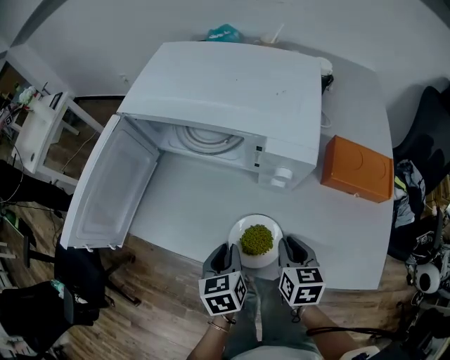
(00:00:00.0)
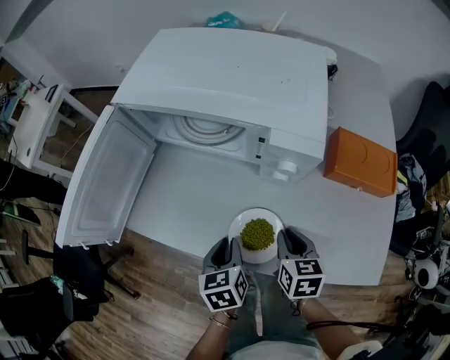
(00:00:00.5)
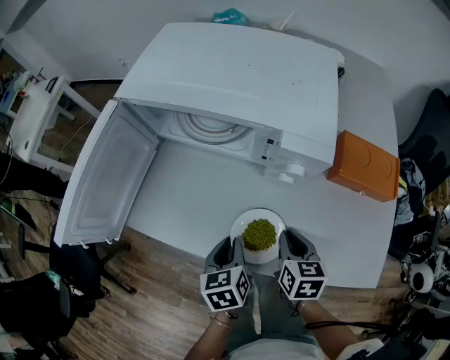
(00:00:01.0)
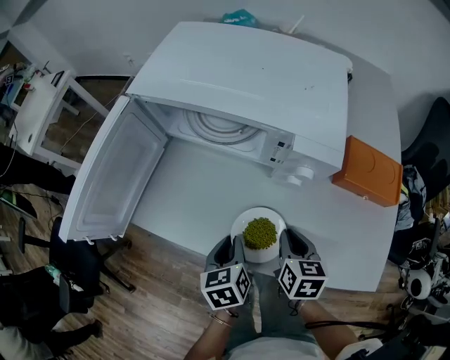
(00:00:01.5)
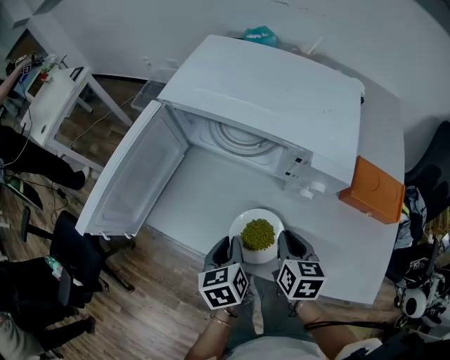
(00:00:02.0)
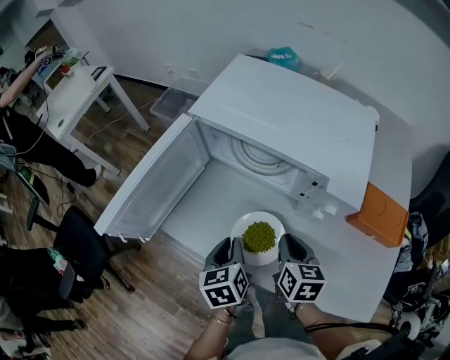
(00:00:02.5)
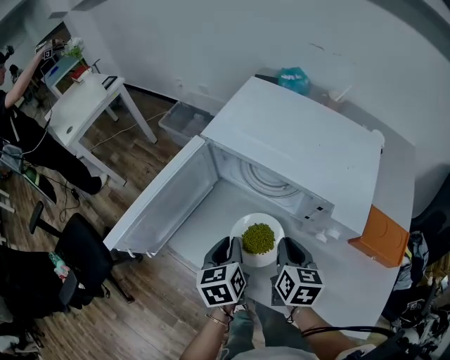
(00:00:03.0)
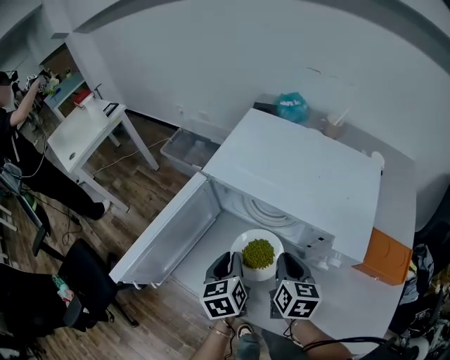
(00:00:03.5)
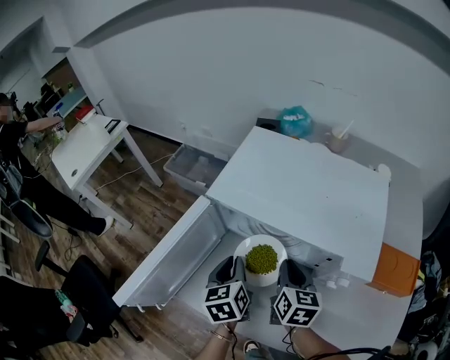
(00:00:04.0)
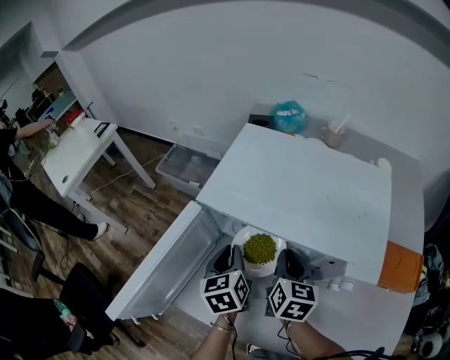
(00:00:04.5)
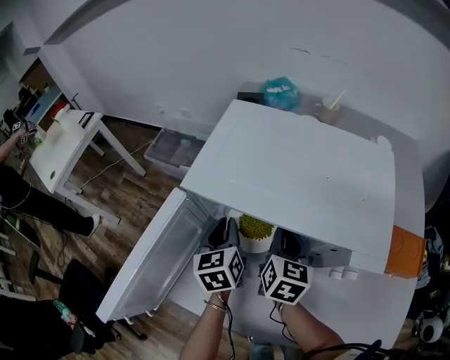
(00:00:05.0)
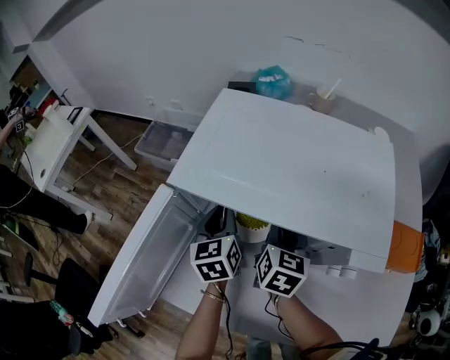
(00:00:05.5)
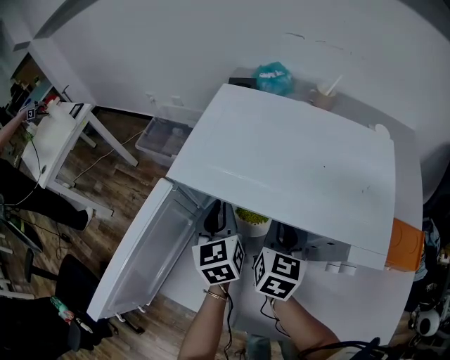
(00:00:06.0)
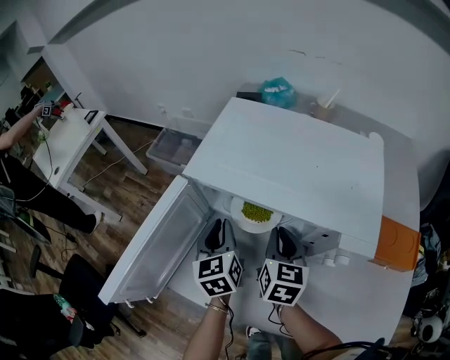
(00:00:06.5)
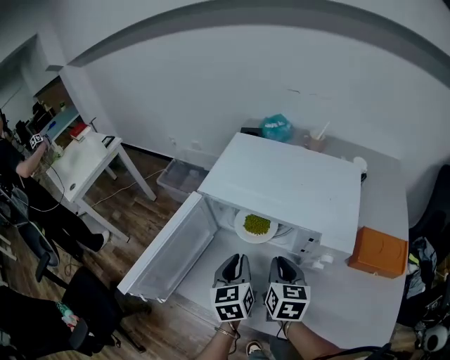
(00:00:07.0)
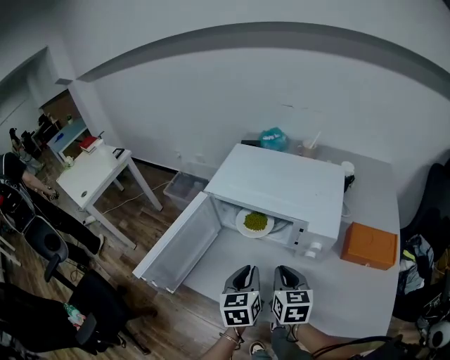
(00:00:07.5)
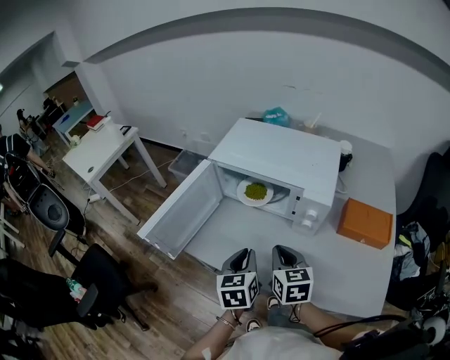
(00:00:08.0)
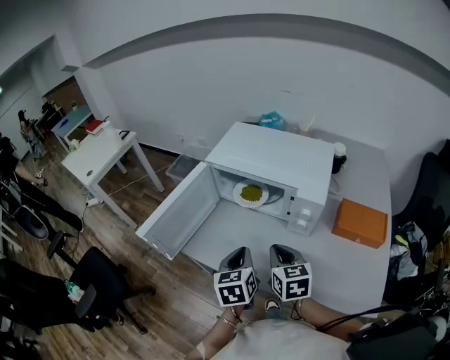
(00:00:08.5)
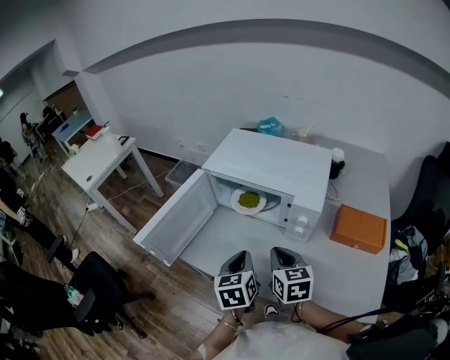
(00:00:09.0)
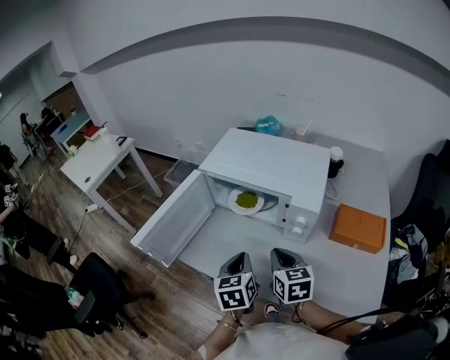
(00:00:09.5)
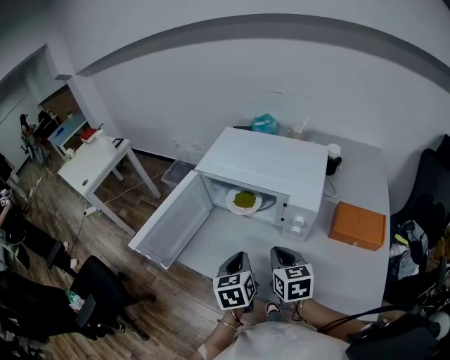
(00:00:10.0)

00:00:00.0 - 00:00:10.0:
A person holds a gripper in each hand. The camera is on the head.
00:00:00.0 - 00:00:02.0: Both grippers move to the left, approximately 5 cm.
00:00:02.0 - 00:00:04.0: Both grippers travel together forward, approximately 20 cm.
00:00:04.0 - 00:00:06.0: The right gripper travels forward by roughly 5 cm, while the left gripper travels forward by about 10 cm.
00:00:06.0 - 00:00:08.0: The grippers both shift backward by some 25 cm. The right gripper swivels approximately 30 degrees.
00:00:08.0 - 00:00:10.0: There are only small adjustments of the grippers.

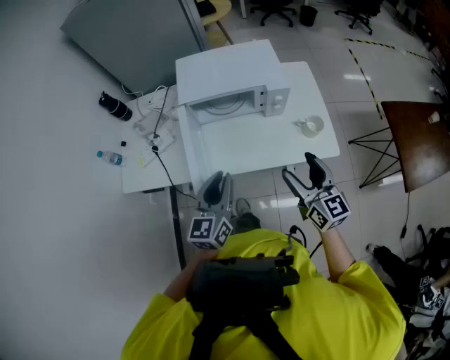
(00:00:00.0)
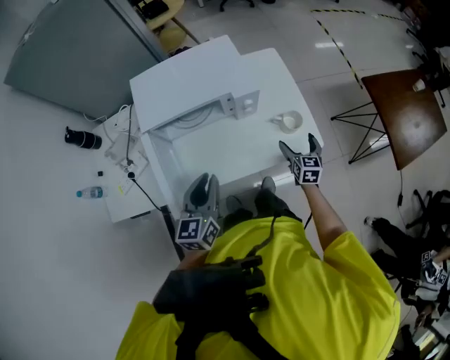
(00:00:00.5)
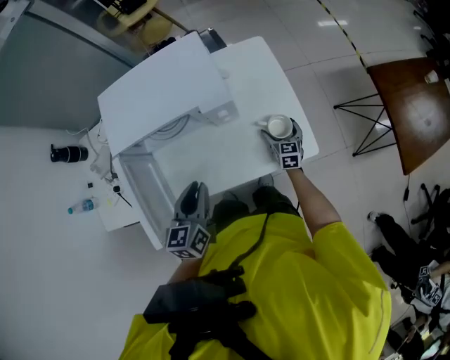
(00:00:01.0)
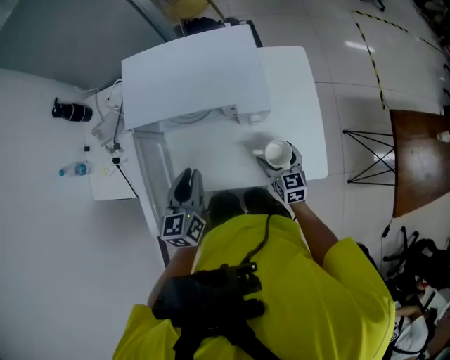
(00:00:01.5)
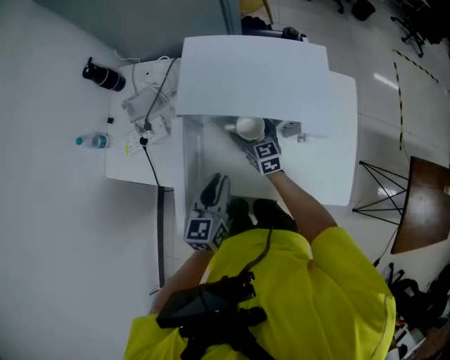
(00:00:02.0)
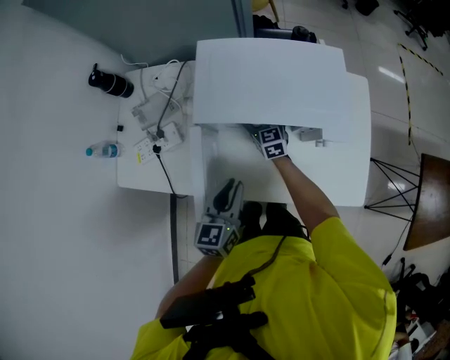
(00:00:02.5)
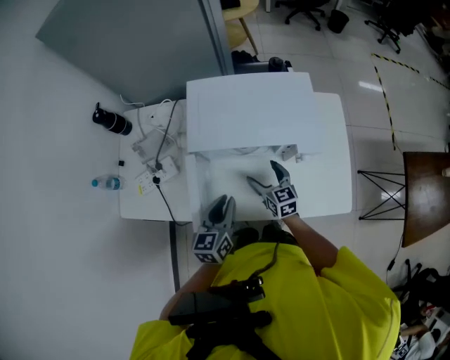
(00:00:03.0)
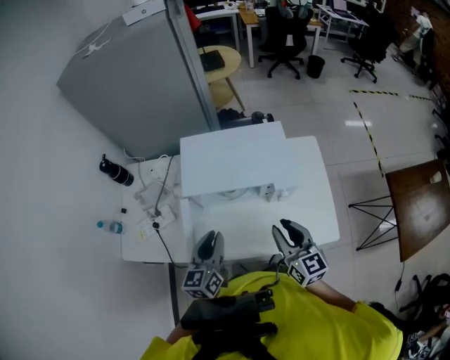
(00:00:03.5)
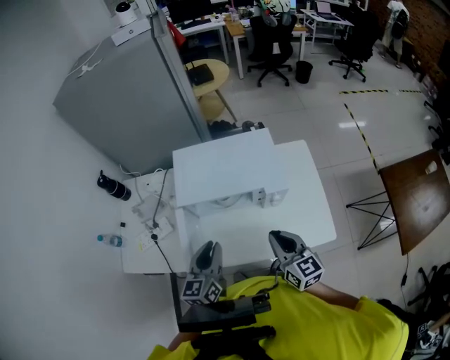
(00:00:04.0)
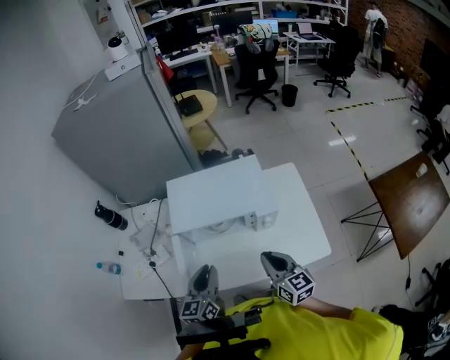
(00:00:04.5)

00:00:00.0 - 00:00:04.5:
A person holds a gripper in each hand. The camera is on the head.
00:00:00.0 - 00:00:02.0: The right gripper shifts by some 50 cm, and changes its angle by approximately 30 degrees, while the left gripper changes place by about 20 cm, and swivels some 20 degrees.
00:00:02.0 - 00:00:04.5: The left gripper heads upward, covering approximately 10 cm, while the right gripper heads upward, backward and to the right, covering about 35 cm, changes its angle by approximately 20 degrees, and closes.

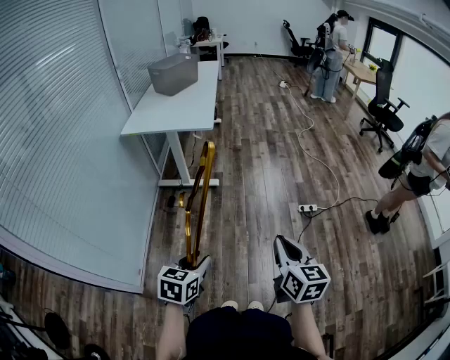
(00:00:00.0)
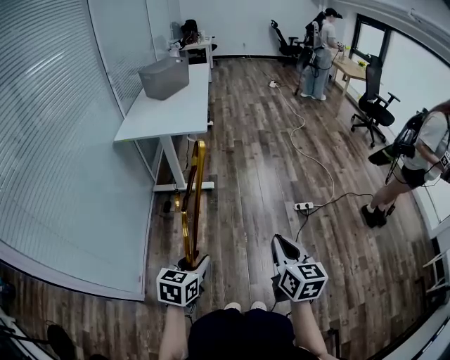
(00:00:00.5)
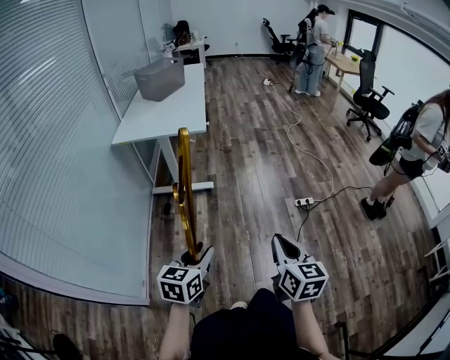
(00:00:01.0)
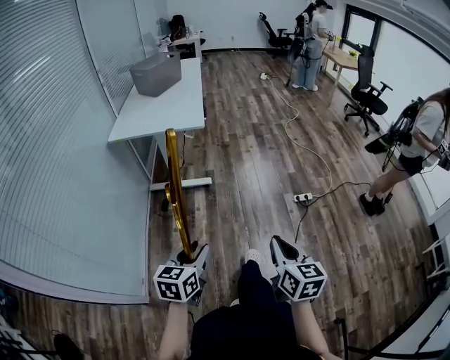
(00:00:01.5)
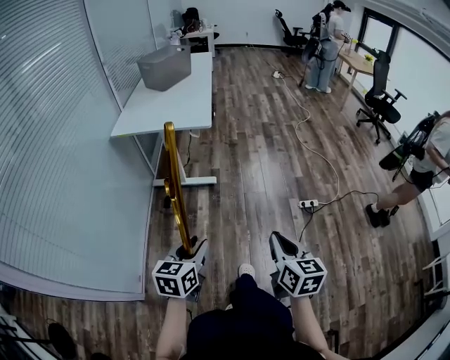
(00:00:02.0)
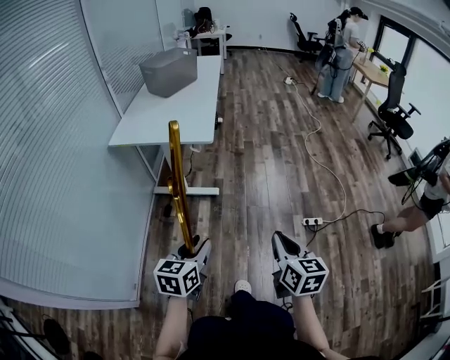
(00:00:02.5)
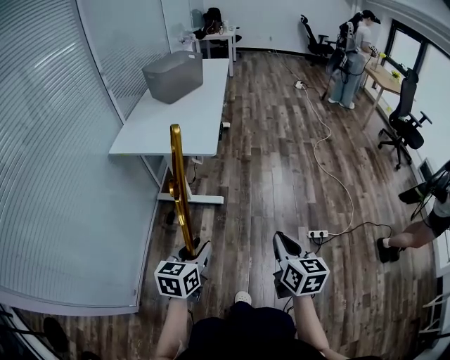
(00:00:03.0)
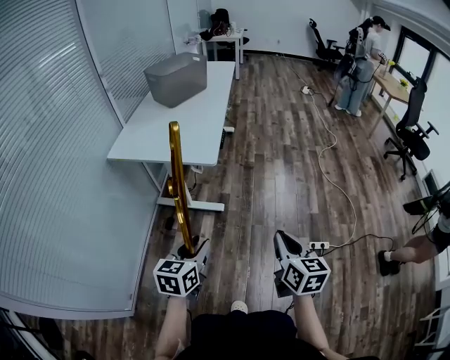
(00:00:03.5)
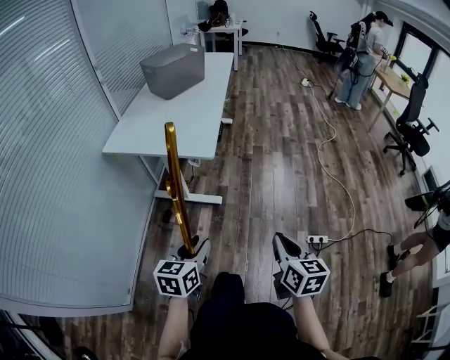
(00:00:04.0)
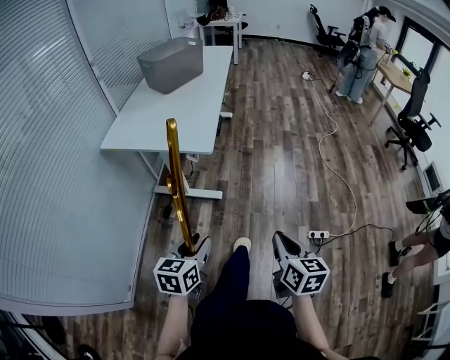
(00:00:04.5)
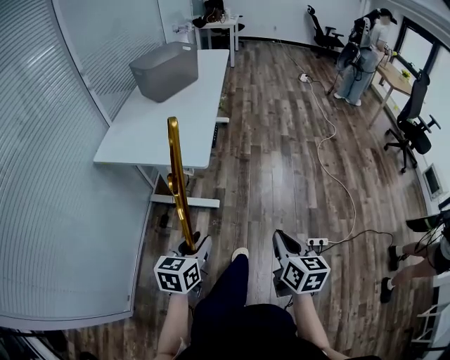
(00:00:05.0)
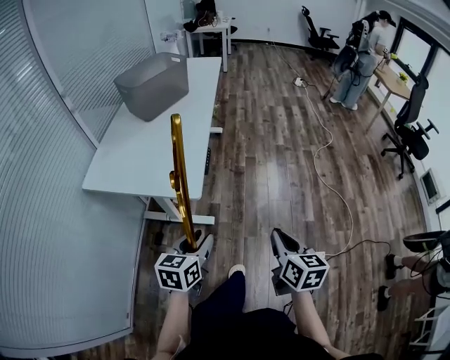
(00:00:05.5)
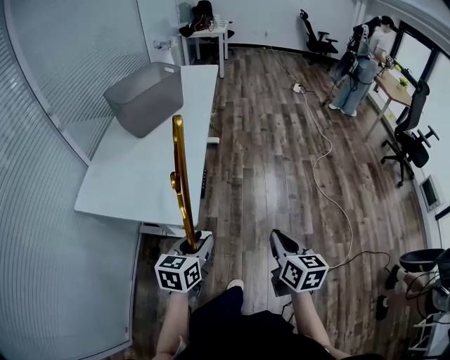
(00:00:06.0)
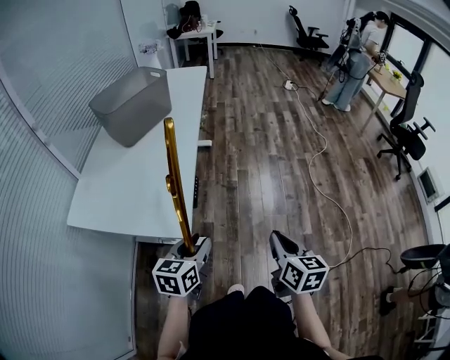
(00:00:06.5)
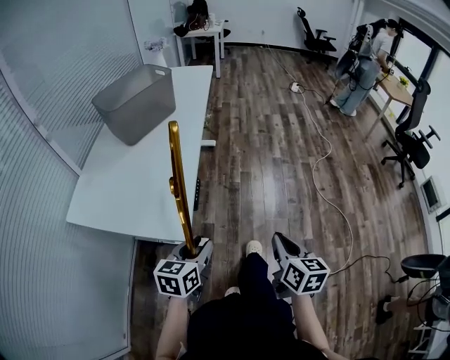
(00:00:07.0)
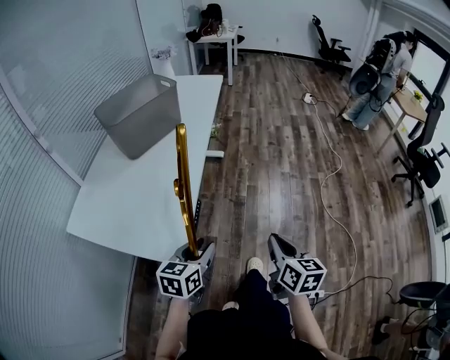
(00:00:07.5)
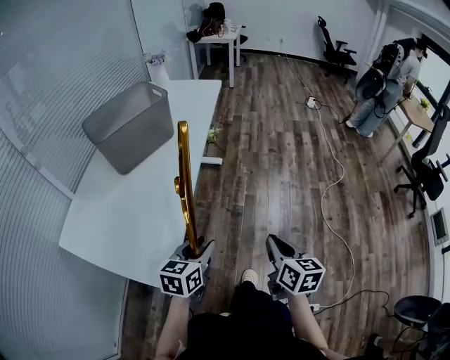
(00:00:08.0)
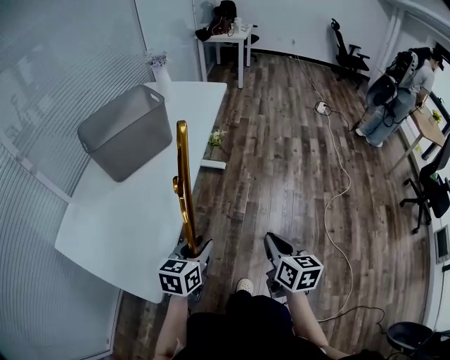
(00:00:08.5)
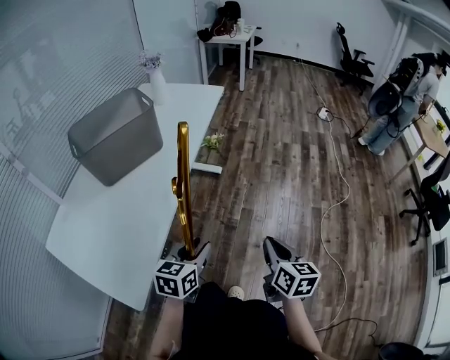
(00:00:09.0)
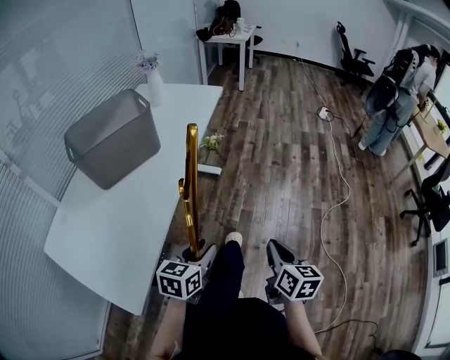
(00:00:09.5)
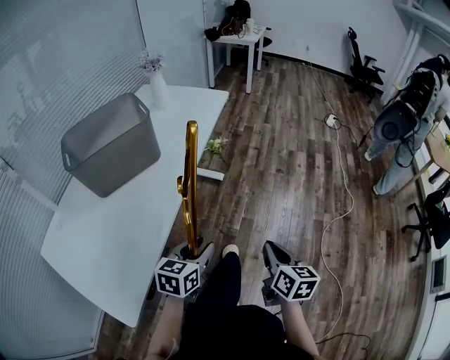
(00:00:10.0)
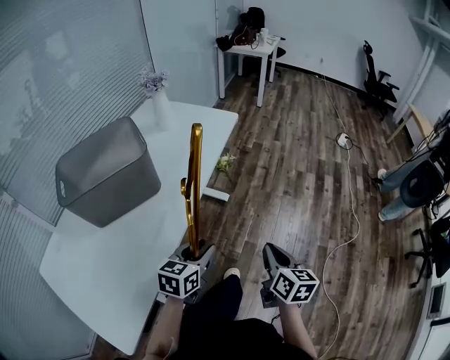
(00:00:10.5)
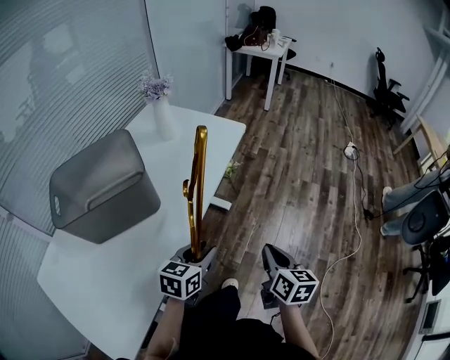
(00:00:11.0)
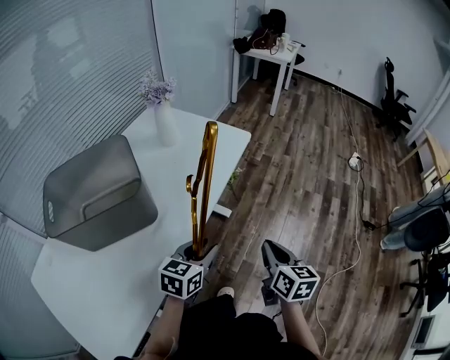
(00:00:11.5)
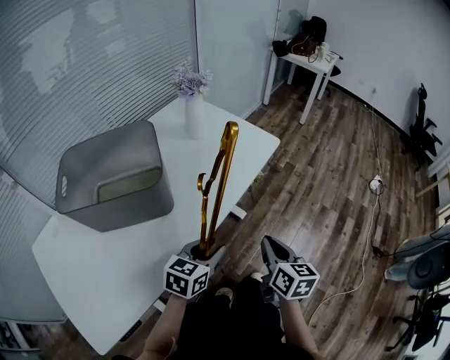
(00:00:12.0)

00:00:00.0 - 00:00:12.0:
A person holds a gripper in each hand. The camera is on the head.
00:00:00.0 - 00:00:02.0: The two grippers go some 10 cm forward and to the left.
00:00:02.0 - 00:00:04.0: The two grippers go about 25 cm forward.
00:00:04.0 - 00:00:06.0: Both grippers move forward, some 30 cm.
00:00:06.0 - 00:00:08.0: The grippers both shift forward by some 25 cm.
00:00:08.0 - 00:00:10.0: Both grippers move forward, about 20 cm.
00:00:10.0 - 00:00:12.0: The grippers both shift forward by some 35 cm. The right gripper turns by approximately 20 degrees.
